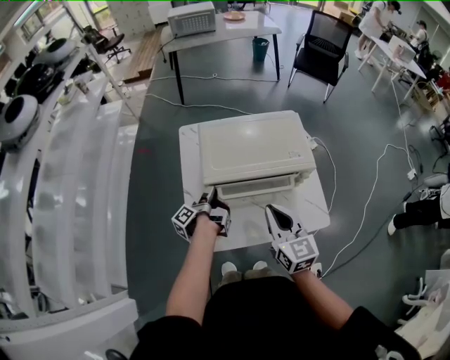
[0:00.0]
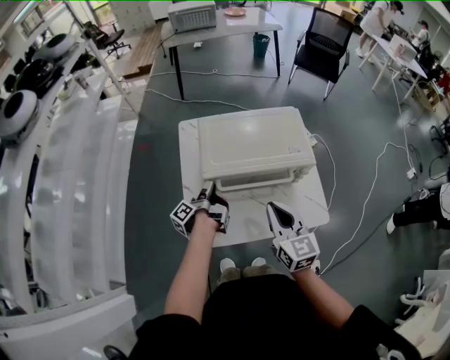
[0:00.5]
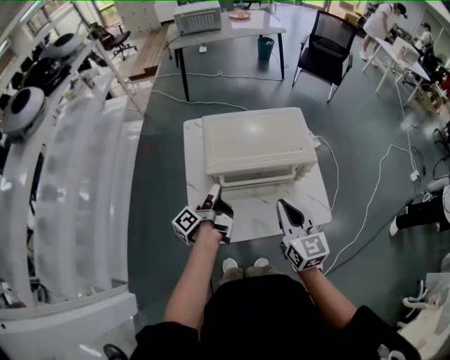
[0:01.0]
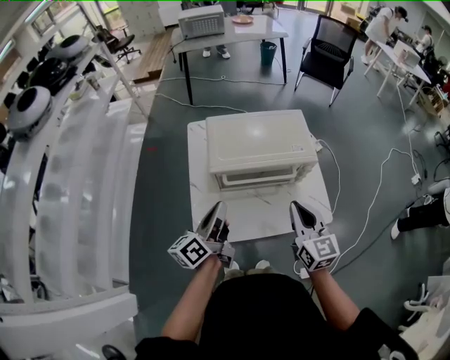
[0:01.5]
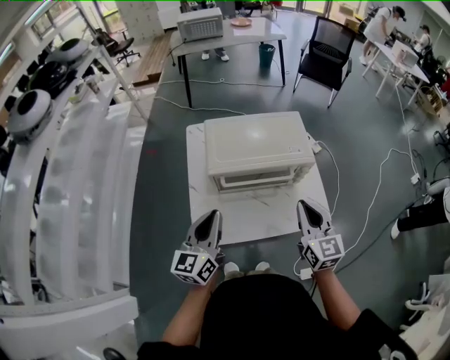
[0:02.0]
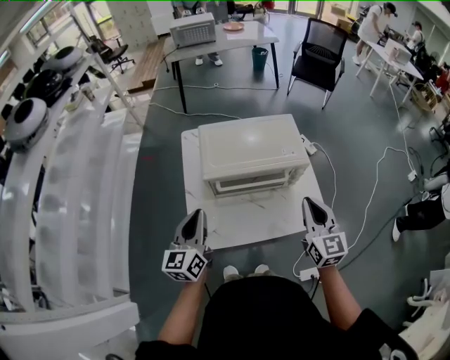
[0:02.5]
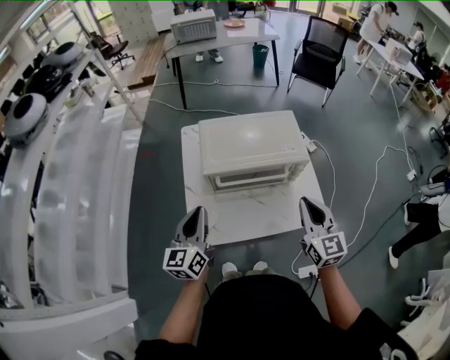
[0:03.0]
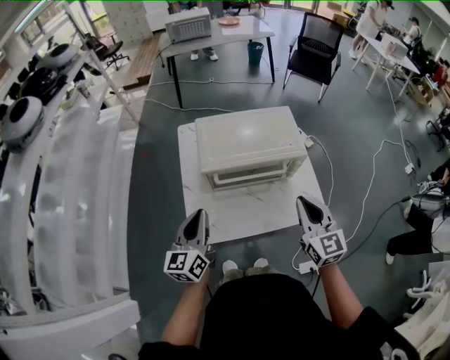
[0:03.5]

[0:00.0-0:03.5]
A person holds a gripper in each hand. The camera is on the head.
0:00.0 to 0:02.0: The right gripper goes some 10 cm to the right. Meanwhile the left gripper moves upward and backward, about 25 cm, and rolls clockwise, seen from behind, by roughly 90 degrees.
0:02.0 to 0:03.5: There are only small adjustments of the grippers.

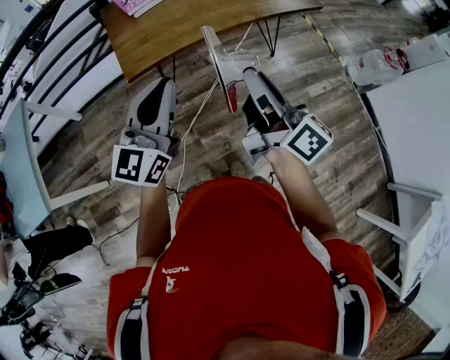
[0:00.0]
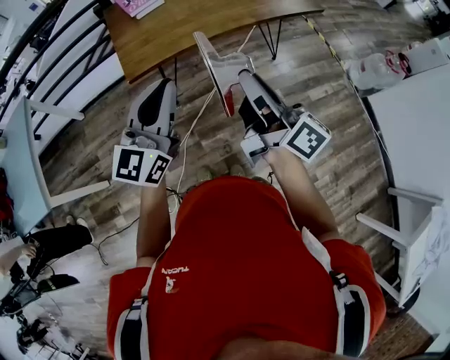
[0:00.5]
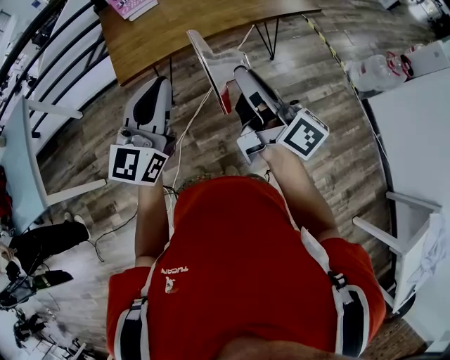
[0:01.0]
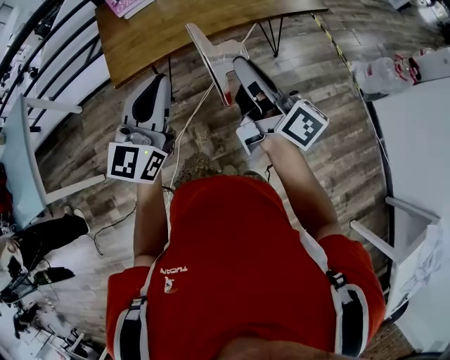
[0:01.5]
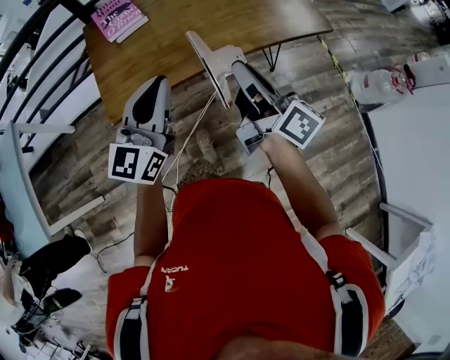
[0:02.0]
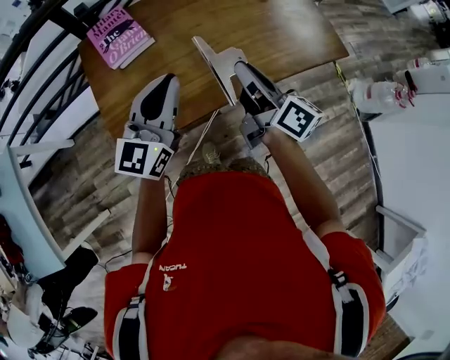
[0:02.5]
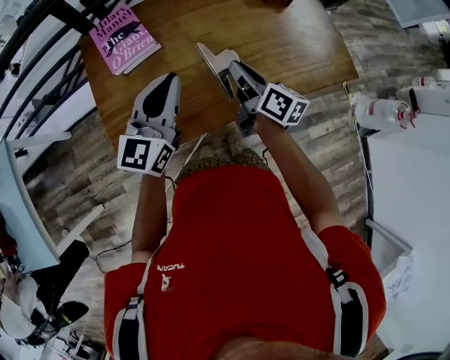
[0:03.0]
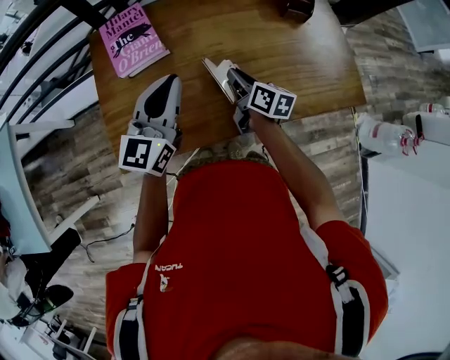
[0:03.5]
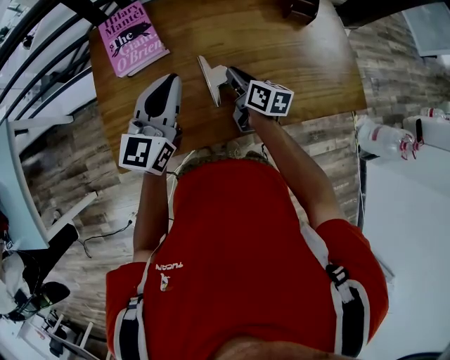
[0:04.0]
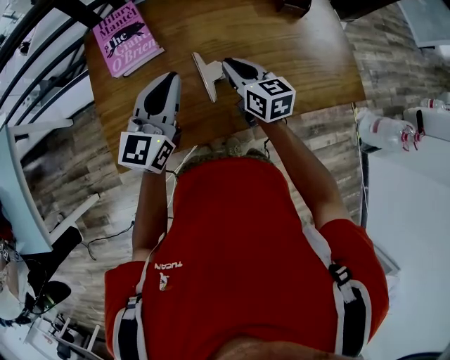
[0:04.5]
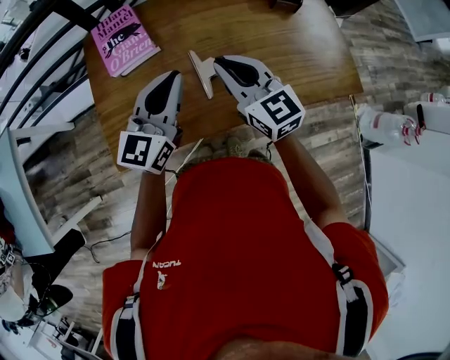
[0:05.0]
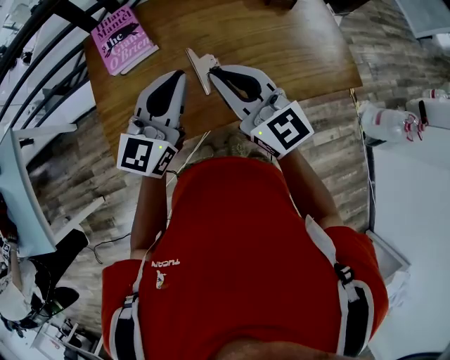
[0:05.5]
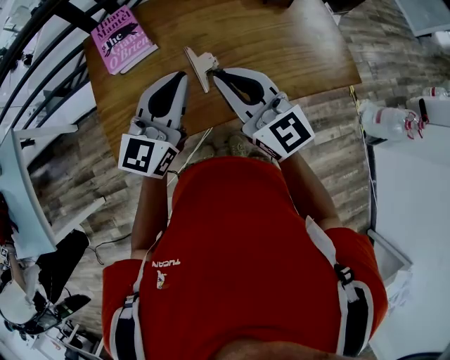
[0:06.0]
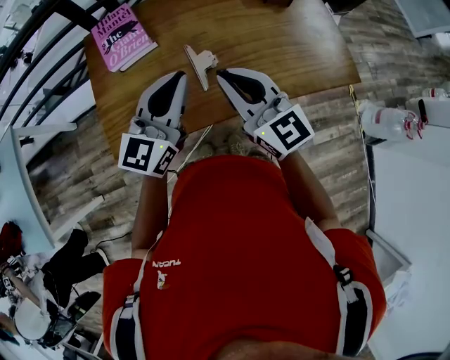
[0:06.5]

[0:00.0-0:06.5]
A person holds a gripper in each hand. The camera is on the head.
0:00.0 to 0:02.0: The two grippers go about 25 cm forward.
0:02.0 to 0:04.5: The right gripper heads forward and downward, covering roughly 35 cm, and angles its fingers downward, by about 30 degrees. Meanwhile the left gripper shifts some 30 cm forward.
0:04.5 to 0:06.5: The right gripper is displaced upward and backward by about 20 cm, and swivels some 30 degrees. The left gripper goes approximately 5 cm backward.

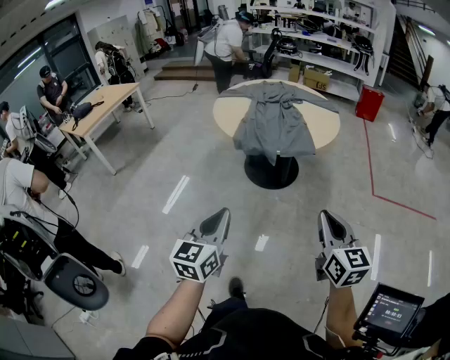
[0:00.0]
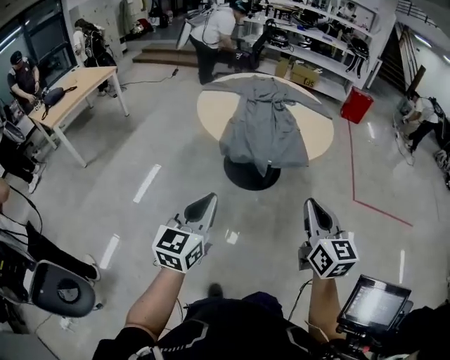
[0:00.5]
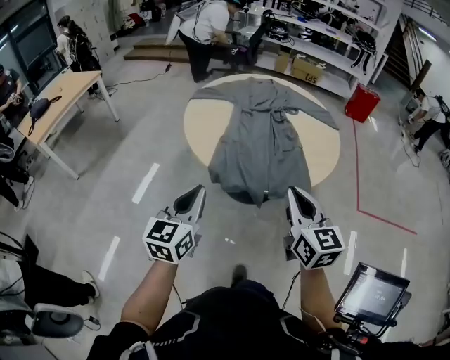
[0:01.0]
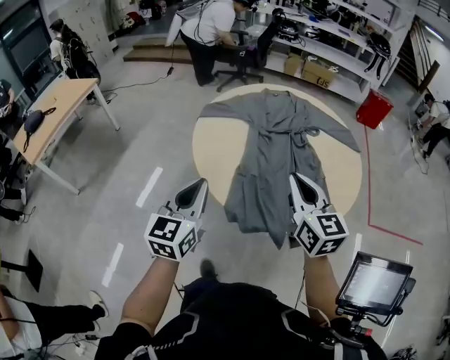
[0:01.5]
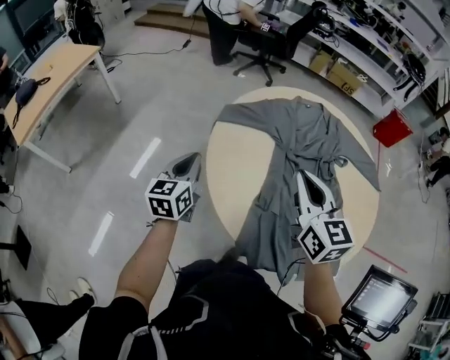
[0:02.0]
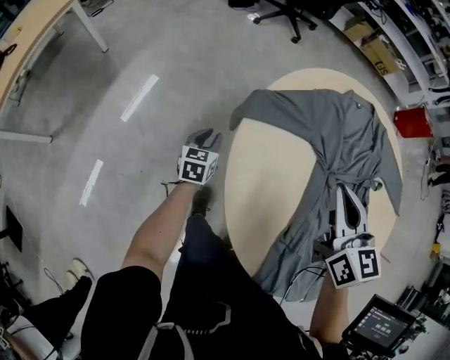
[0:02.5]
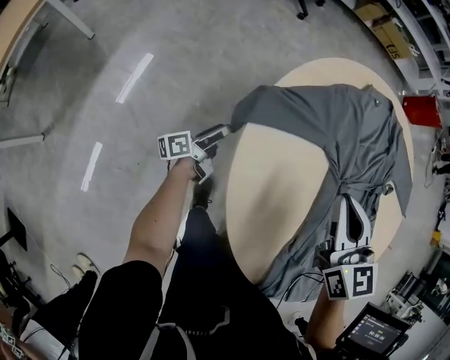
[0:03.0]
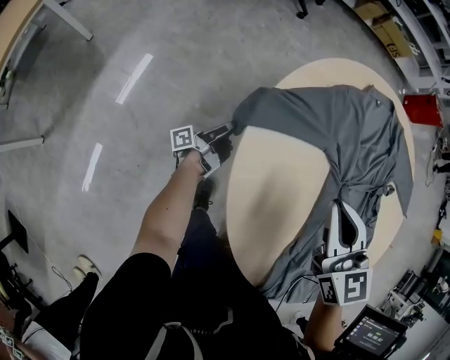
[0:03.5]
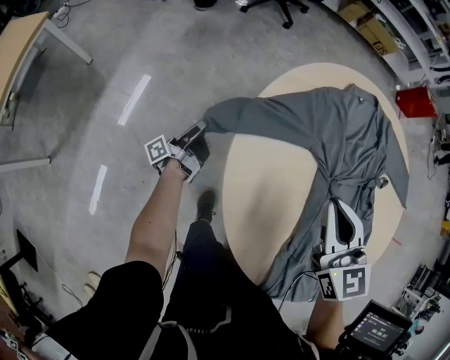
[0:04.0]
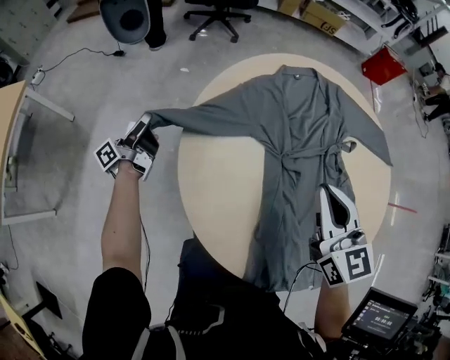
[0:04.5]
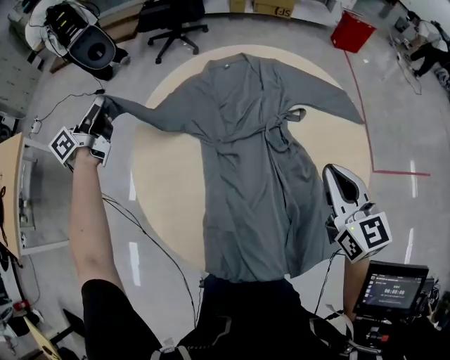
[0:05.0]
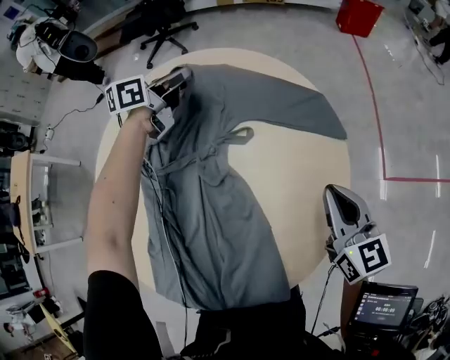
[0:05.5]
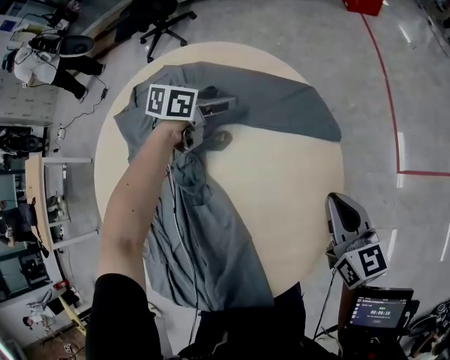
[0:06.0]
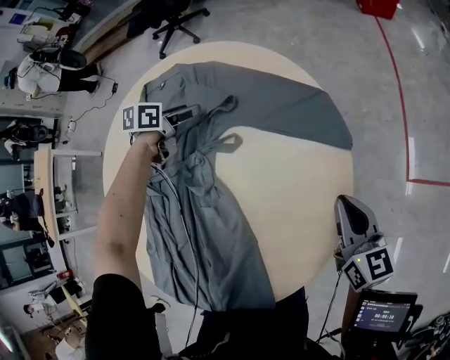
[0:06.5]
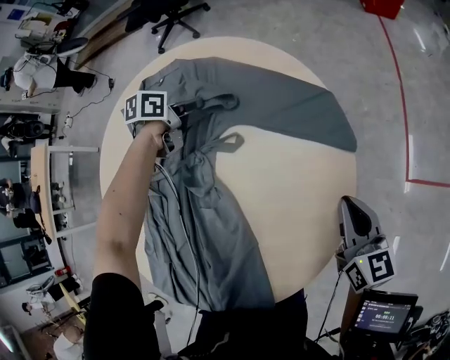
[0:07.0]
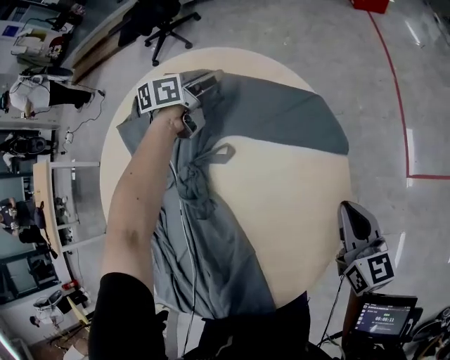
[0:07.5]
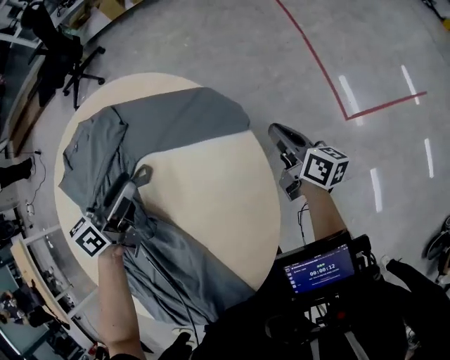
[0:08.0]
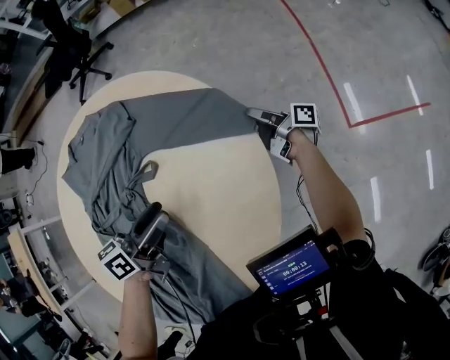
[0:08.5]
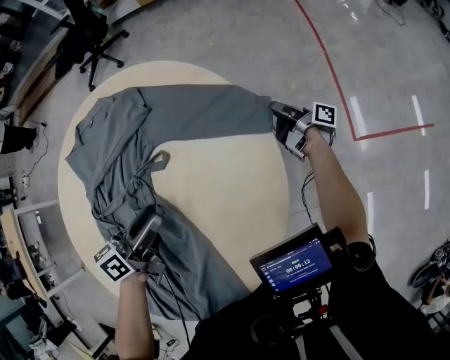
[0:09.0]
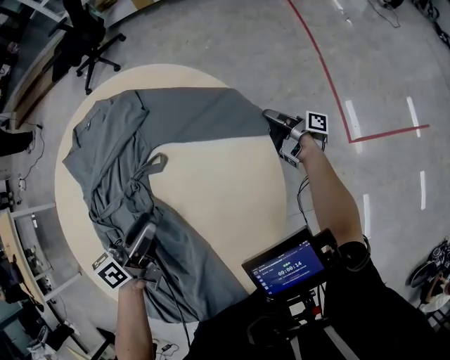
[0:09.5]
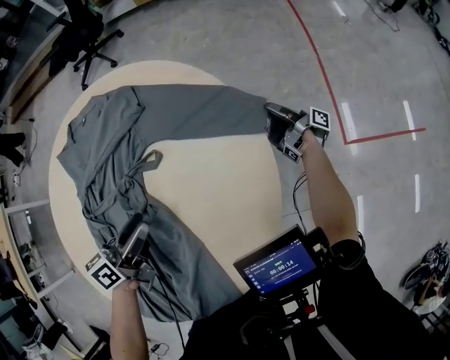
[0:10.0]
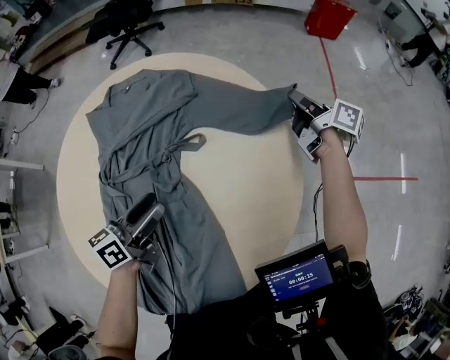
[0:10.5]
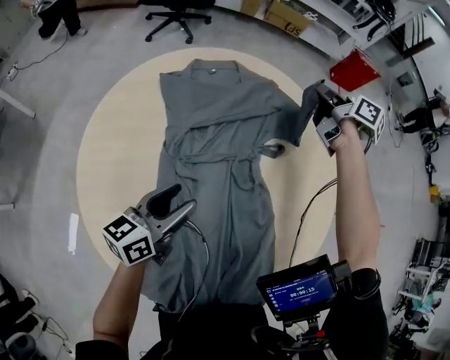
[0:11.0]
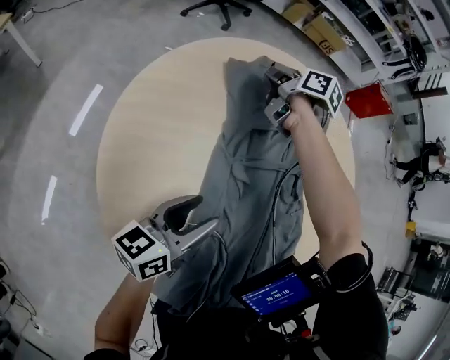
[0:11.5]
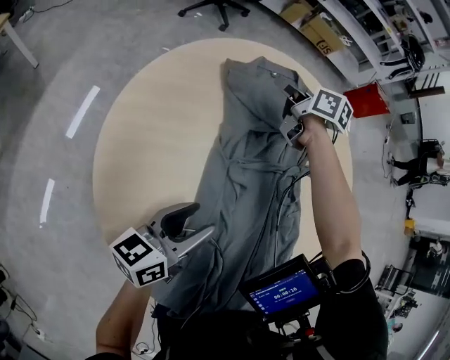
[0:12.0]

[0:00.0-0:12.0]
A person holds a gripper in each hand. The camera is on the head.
0:00.0 to 0:02.0: The pair of grippers is taken forward and to the left, roughly 90 cm.
0:02.0 to 0:04.0: The left gripper moves forward and downward, about 40 cm, rolls counterclockwise, seen from behind, by roughly 80 degrees, and opens, then closes once more. The right gripper goes about 25 cm forward and downward.
0:04.0 to 0:06.0: Both grippers are carried approximately 70 cm. The right gripper changes its angle by some 30 degrees, while the left gripper tips its fingers downward by some 50 degrees, and opens.
0:06.0 to 0:08.0: The right gripper shifts roughly 15 cm forward, to the right and downward, and changes its angle by roughly 30 degrees, while the left gripper swings forward and backward, roughly 20 cm each way, with 2 reversals, rotates some 20 degrees, and closes, then reopens.
0:08.0 to 0:10.0: The left gripper shifts some 15 cm backward. The right gripper travels forward and downward by about 15 cm, twists some 50 degrees clockwise, seen from behind, and opens, then closes again.
0:10.0 to 0:12.0: The left gripper shifts some 35 cm to the left. Meanwhile the right gripper is displaced to the left by about 70 cm, twists about 70 degrees counterclockwise, seen from behind, and opens.

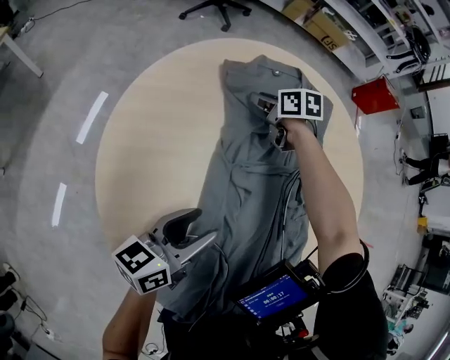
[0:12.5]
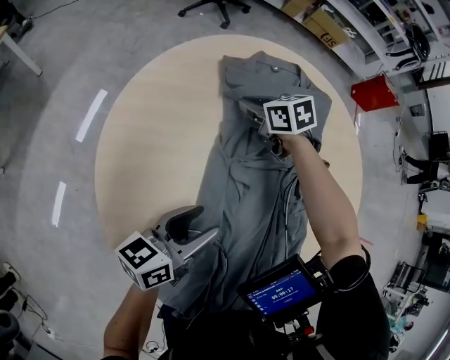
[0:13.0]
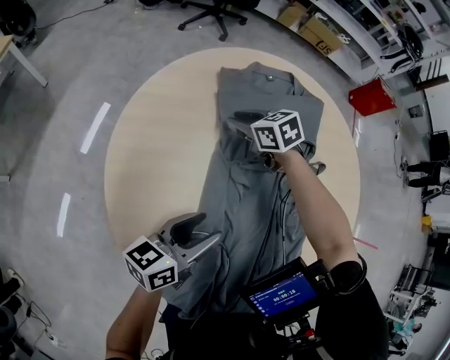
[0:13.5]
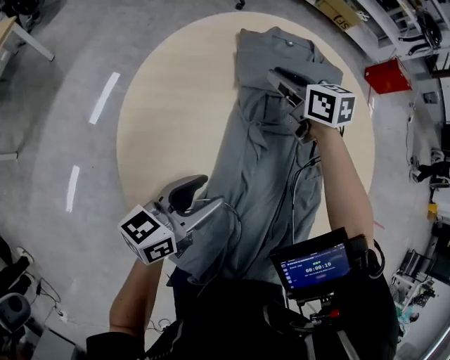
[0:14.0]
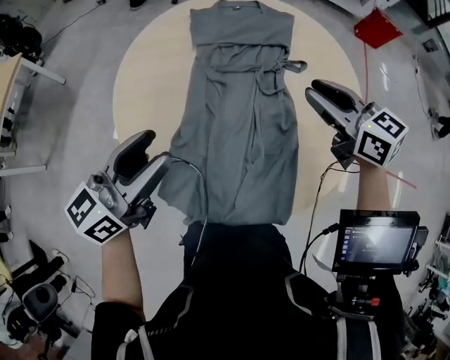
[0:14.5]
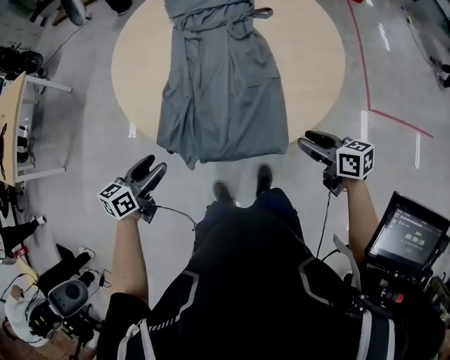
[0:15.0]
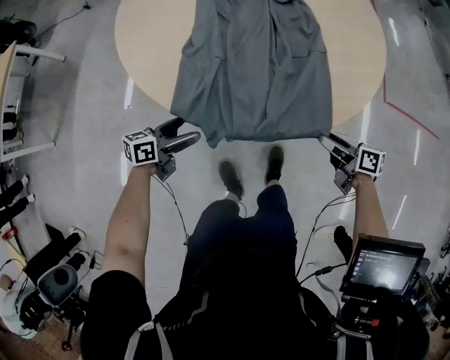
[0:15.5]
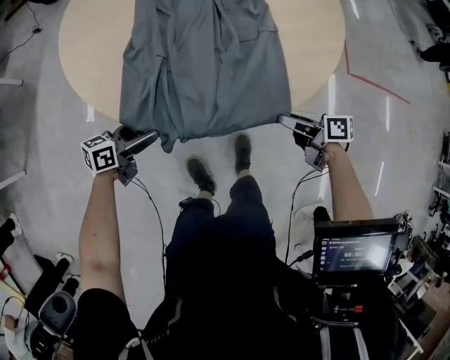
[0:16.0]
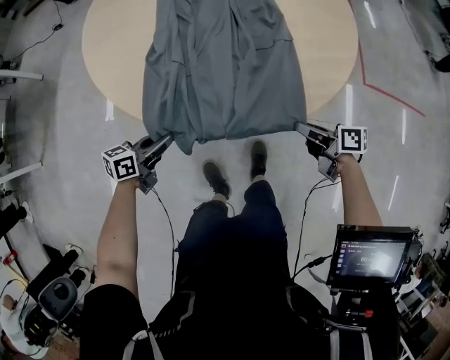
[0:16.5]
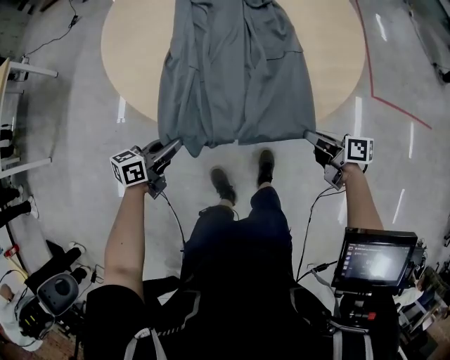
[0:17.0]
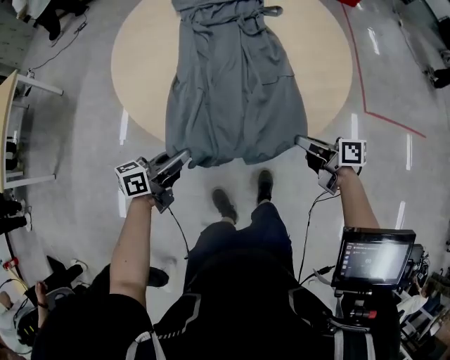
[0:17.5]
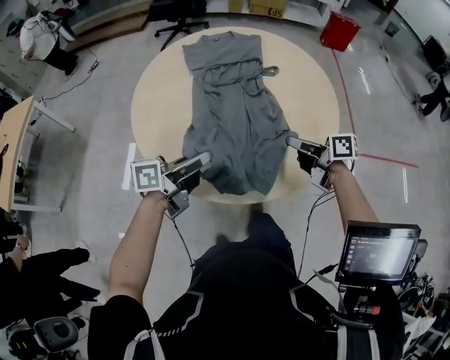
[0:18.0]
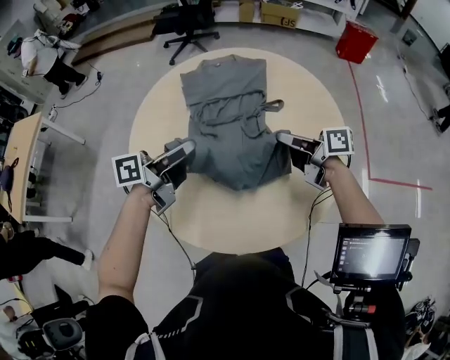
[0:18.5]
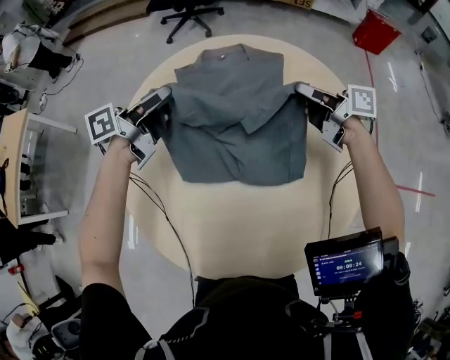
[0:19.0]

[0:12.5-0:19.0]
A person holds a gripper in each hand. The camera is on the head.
0:12.5 to 0:14.5: The right gripper moves backward and upward, roughly 50 cm, and rotates some 30 degrees. Meanwhile the left gripper heads upward and backward, covering approximately 25 cm, and turns by approximately 20 degrees.
0:14.5 to 0:17.0: The left gripper goes some 35 cm downward and backward, turns by about 30 degrees, and closes up. Meanwhile the right gripper travels backward and downward by approximately 40 cm, twists some 50 degrees clockwise, seen from behind, and opens, then closes once more.
0:17.0 to 0:19.0: The left gripper travels forward and upward by roughly 35 cm, and swivels some 20 degrees, while the right gripper goes approximately 30 cm forward.
